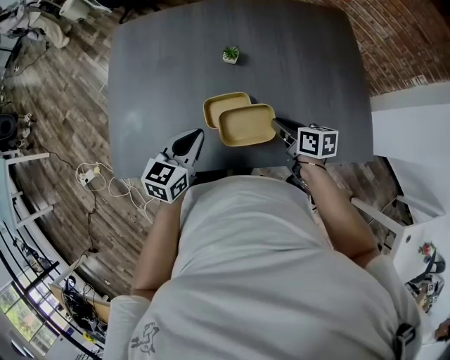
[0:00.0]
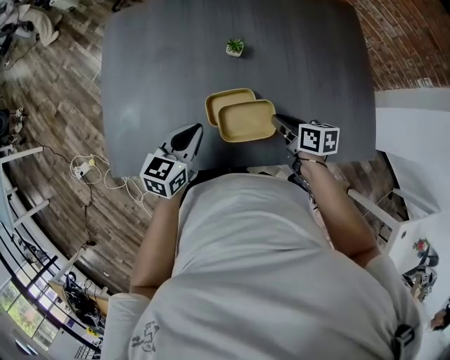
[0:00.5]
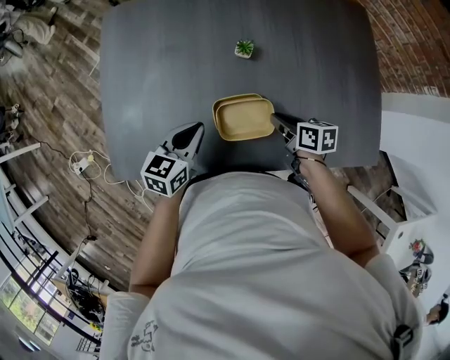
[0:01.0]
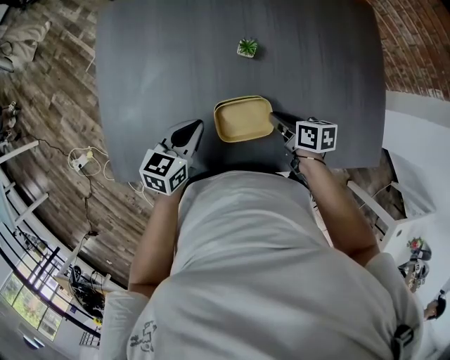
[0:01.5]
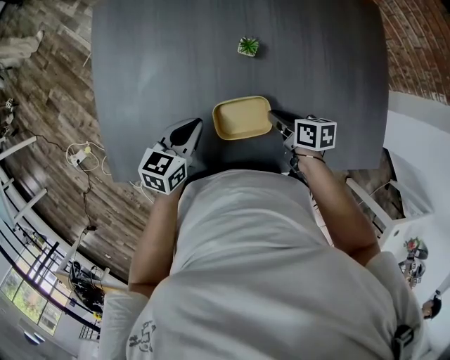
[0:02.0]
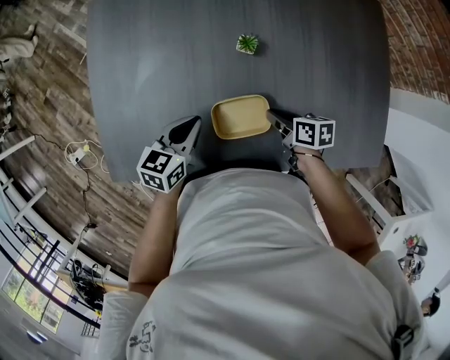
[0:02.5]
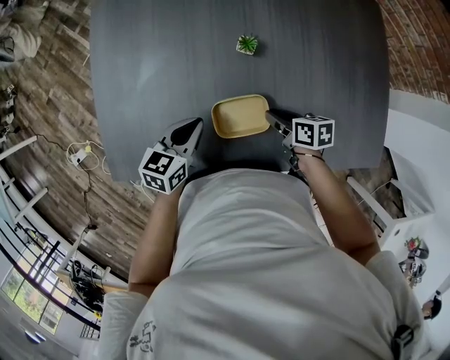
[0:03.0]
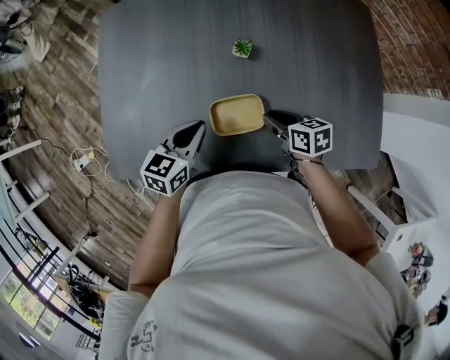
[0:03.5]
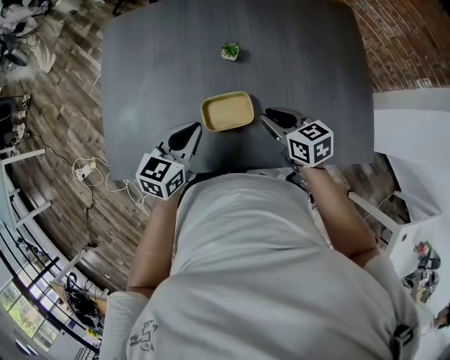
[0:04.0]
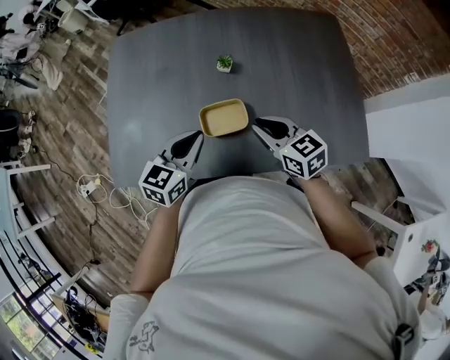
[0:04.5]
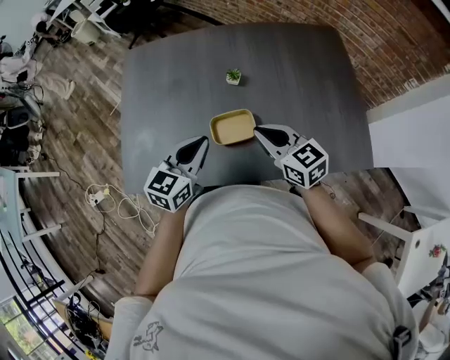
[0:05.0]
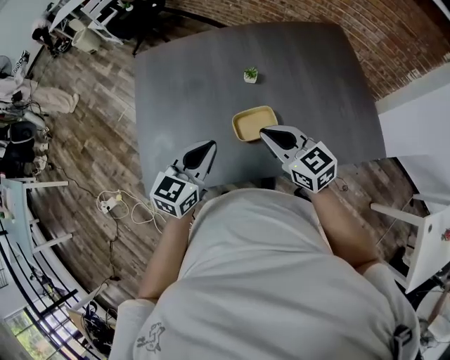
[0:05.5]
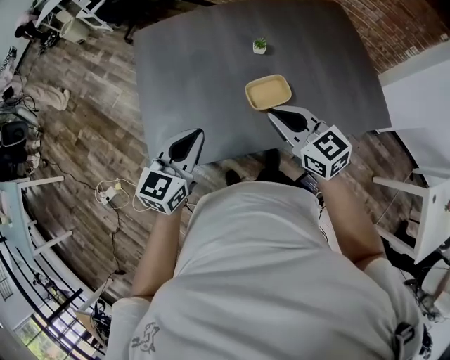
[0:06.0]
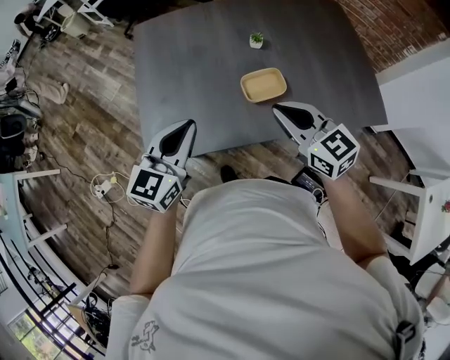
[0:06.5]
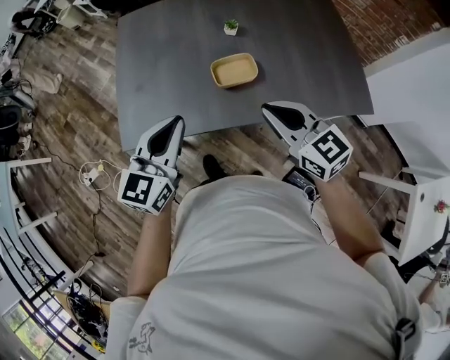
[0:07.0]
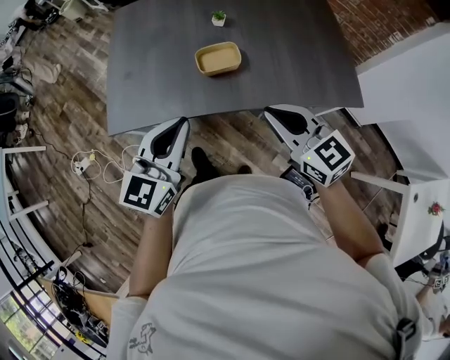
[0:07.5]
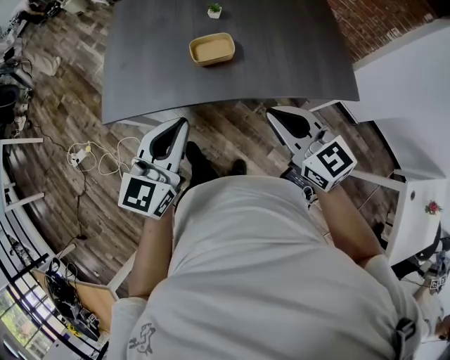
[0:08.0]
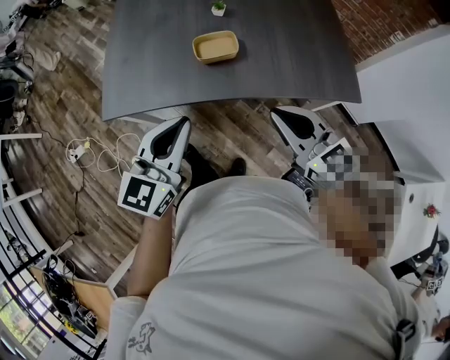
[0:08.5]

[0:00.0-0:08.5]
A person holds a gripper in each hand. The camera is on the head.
0:00.0 to 0:02.0: The right gripper shifts some 10 cm downward and forward. The left gripper travels forward and downward by approximately 10 cm.
0:02.0 to 0:04.0: The left gripper travels upward and backward by roughly 10 cm, while the right gripper travels upward by roughly 10 cm, and changes its angle by approximately 30 degrees.
0:04.0 to 0:06.5: The right gripper travels upward, to the left and backward by roughly 25 cm, and changes its angle by about 30 degrees, while the left gripper moves to the left, upward and backward, approximately 25 cm.
0:06.5 to 0:08.5: The two grippers go about 25 cm backward and to the right.

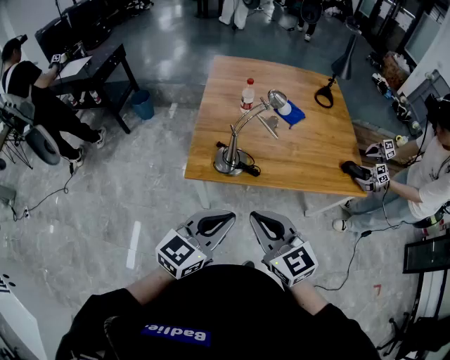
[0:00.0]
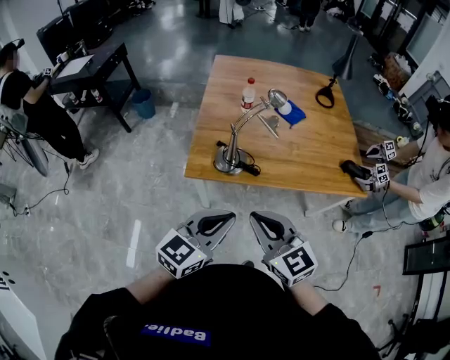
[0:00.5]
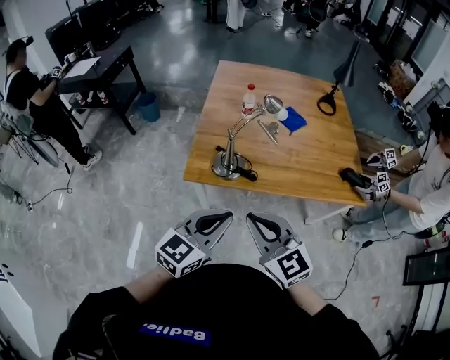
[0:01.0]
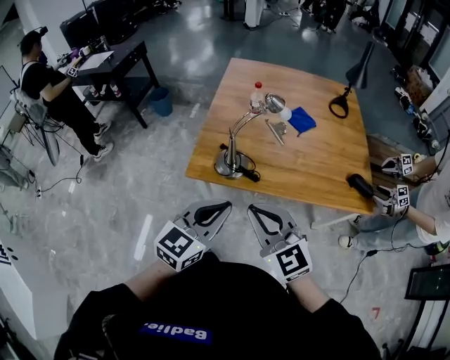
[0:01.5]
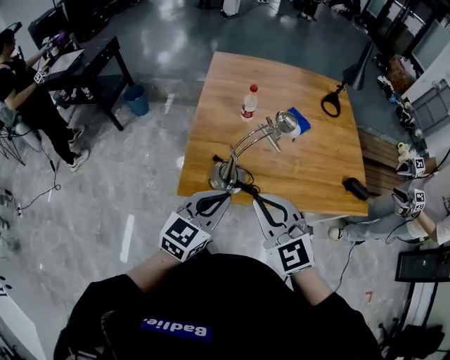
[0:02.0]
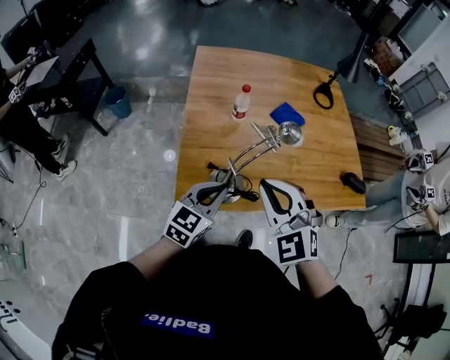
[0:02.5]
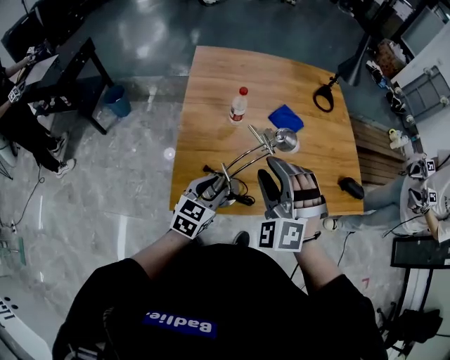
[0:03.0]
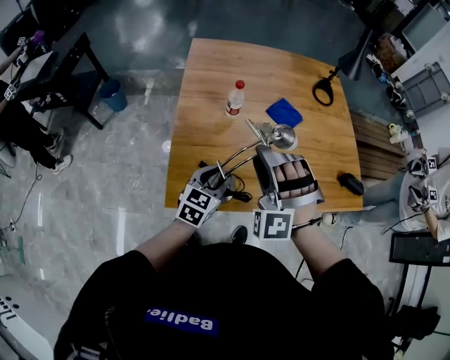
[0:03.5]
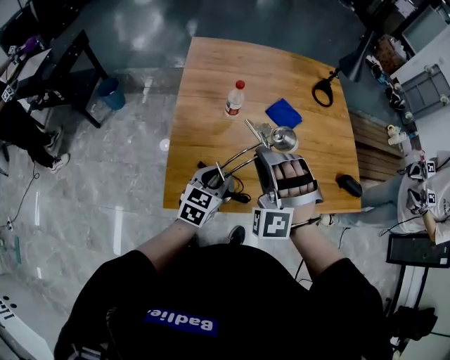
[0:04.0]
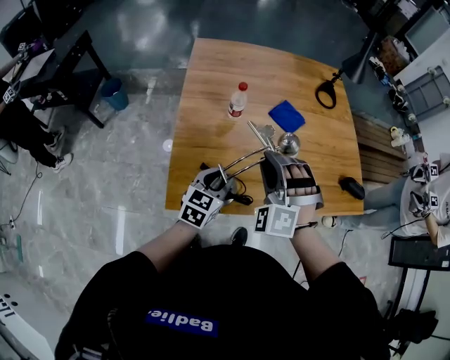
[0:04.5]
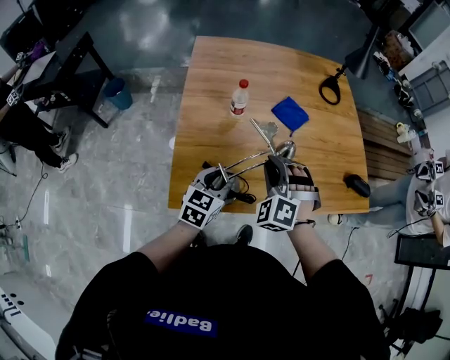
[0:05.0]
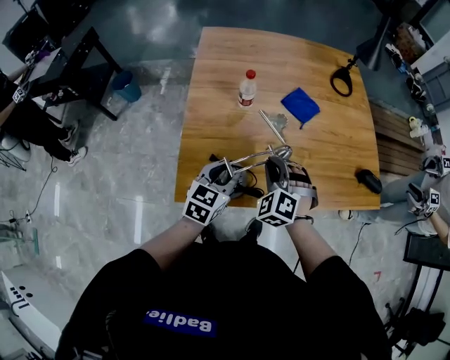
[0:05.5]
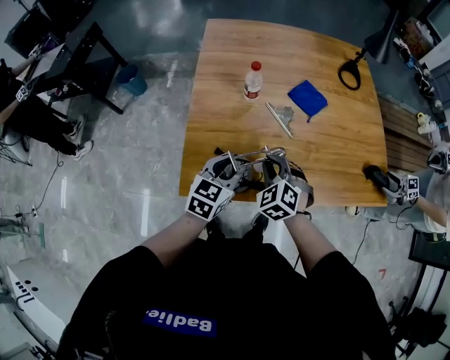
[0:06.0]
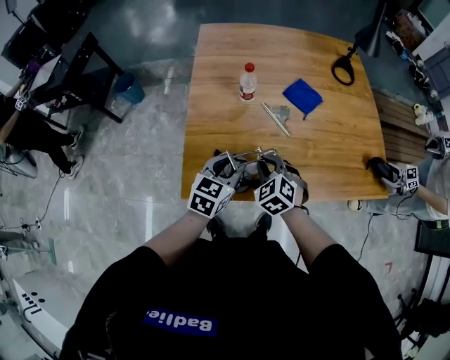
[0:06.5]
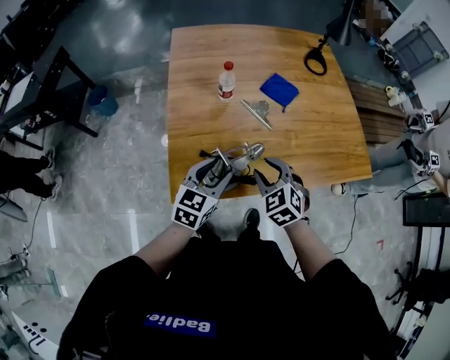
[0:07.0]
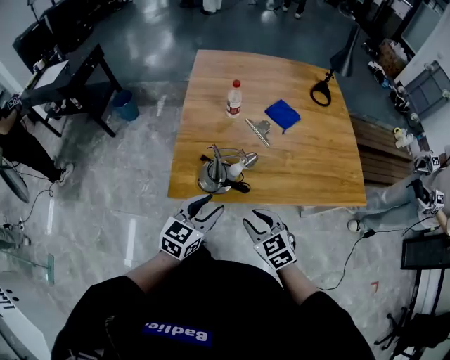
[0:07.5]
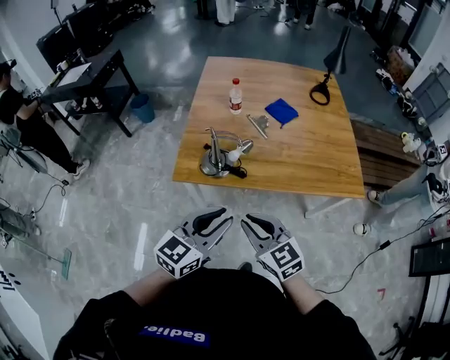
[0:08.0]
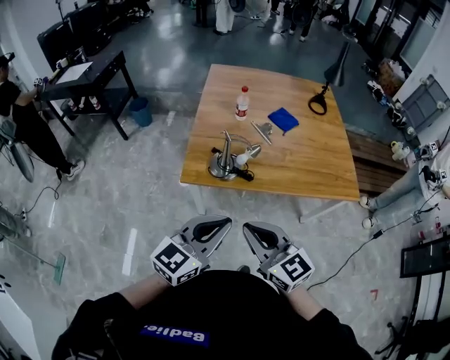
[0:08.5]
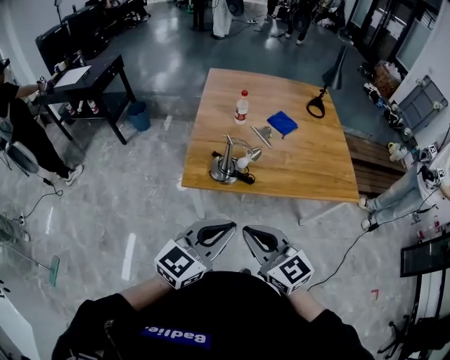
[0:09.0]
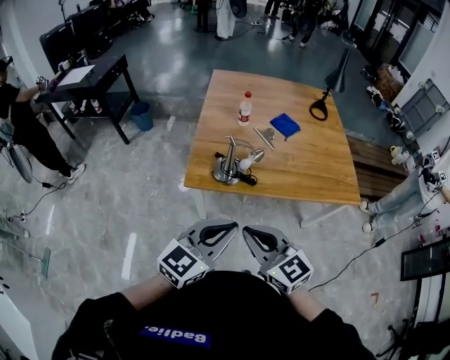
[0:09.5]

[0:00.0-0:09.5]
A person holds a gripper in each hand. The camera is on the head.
0:00.0 to 0:02.0: The grippers both shift forward by roughly 15 cm. The right gripper changes its angle by some 20 degrees.
0:02.0 to 0:04.0: The left gripper shifts about 20 cm forward and downward, and opens its fingers, while the right gripper moves forward, some 20 cm, twists some 60 degrees counterclockwise, seen from behind, and opens up.
0:04.0 to 0:05.5: The right gripper is displaced downward by roughly 15 cm, and turns by roughly 40 degrees.
0:05.5 to 0:07.5: The two grippers go roughly 20 cm backward. The right gripper changes its angle by approximately 40 degrees, and opens.
0:07.5 to 0:09.5: The two grippers go about 25 cm backward and upward. The right gripper rotates roughly 30 degrees, and closes. The left gripper closes up.

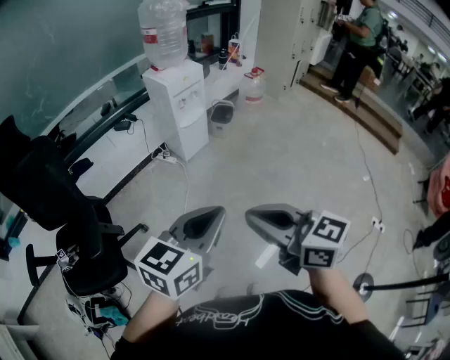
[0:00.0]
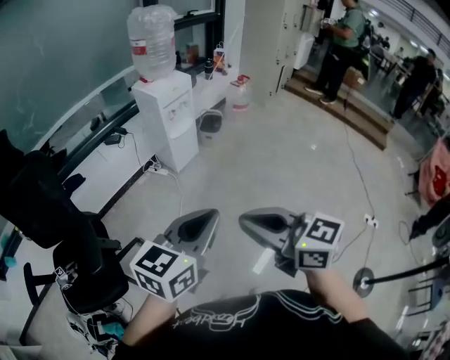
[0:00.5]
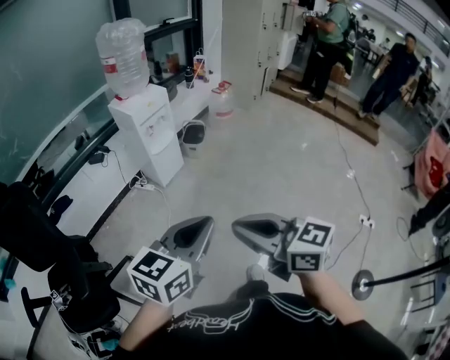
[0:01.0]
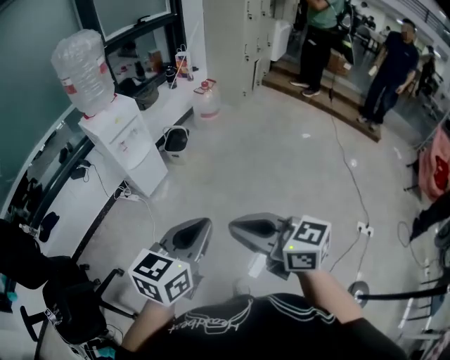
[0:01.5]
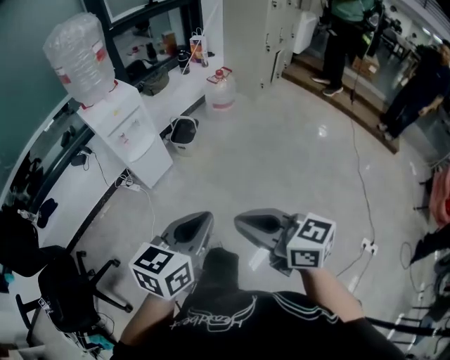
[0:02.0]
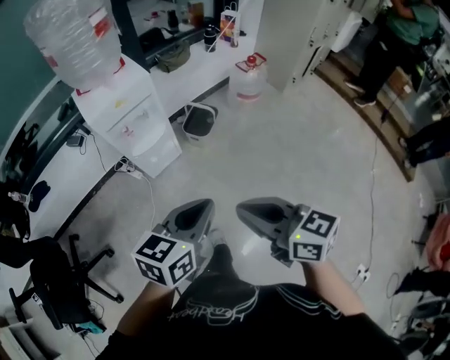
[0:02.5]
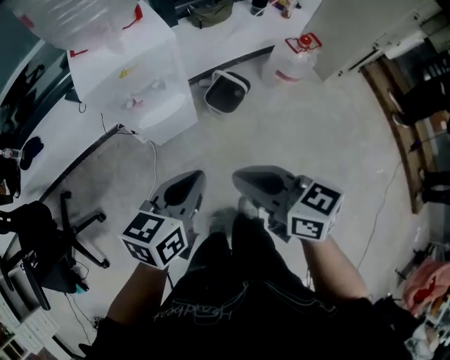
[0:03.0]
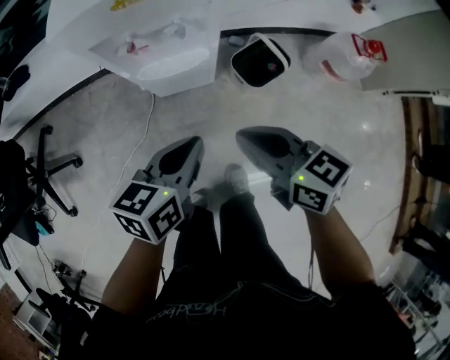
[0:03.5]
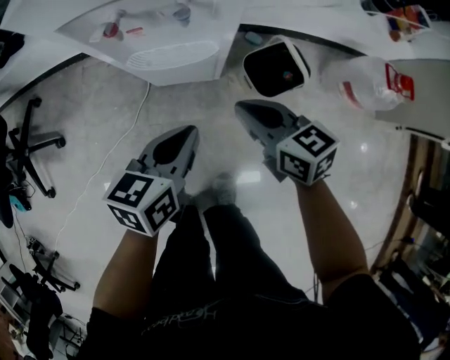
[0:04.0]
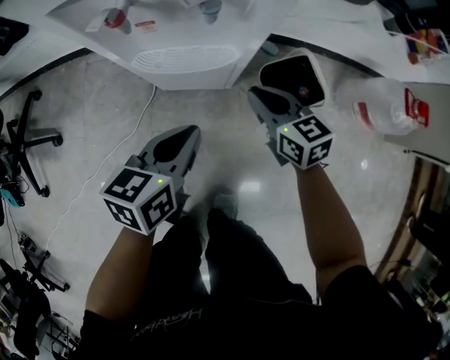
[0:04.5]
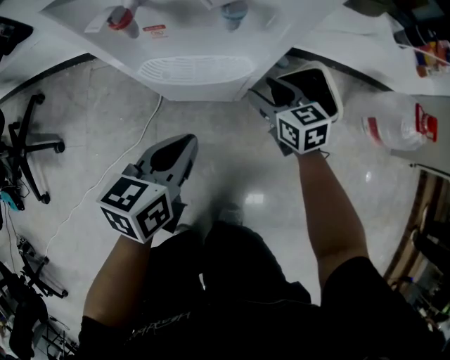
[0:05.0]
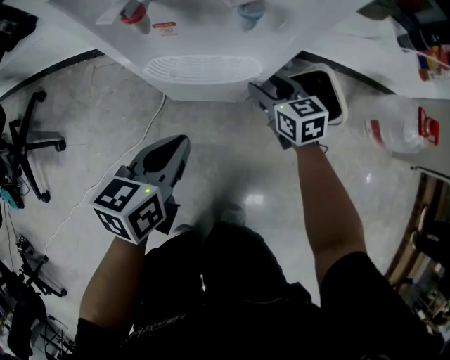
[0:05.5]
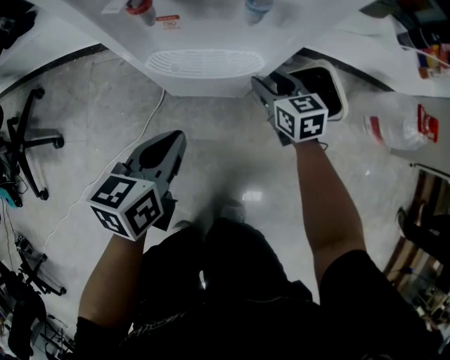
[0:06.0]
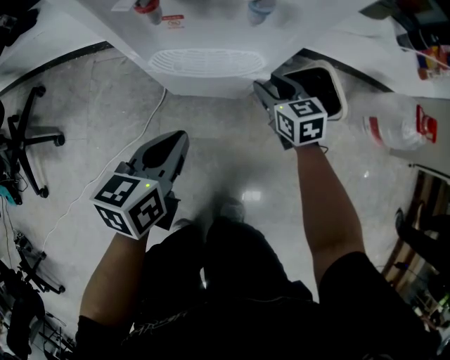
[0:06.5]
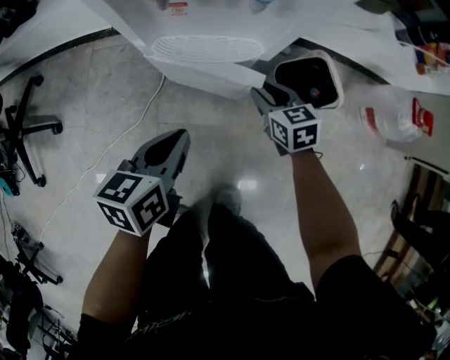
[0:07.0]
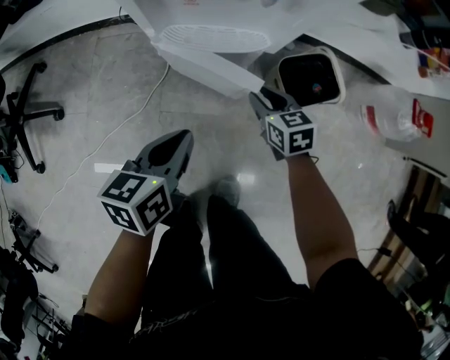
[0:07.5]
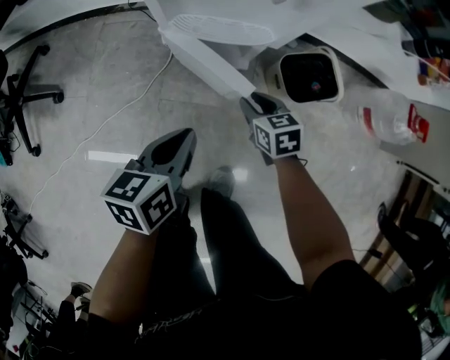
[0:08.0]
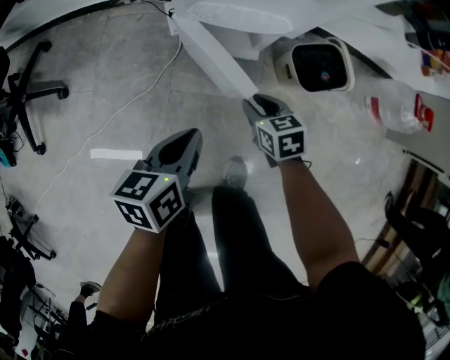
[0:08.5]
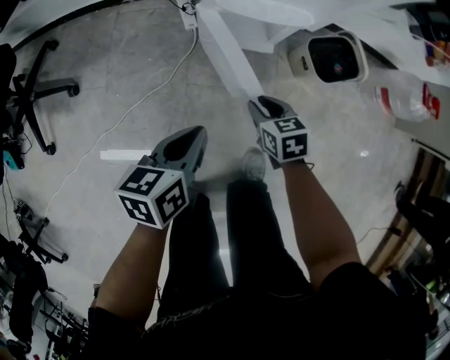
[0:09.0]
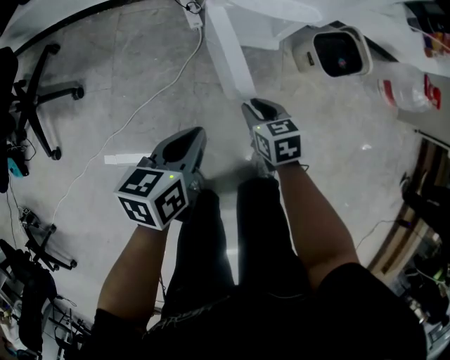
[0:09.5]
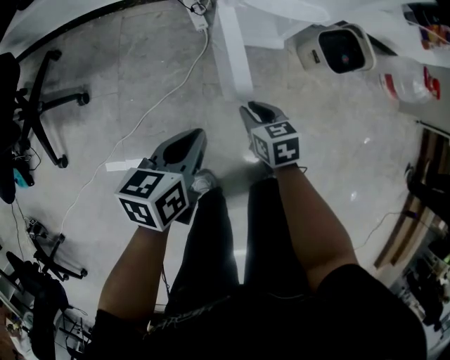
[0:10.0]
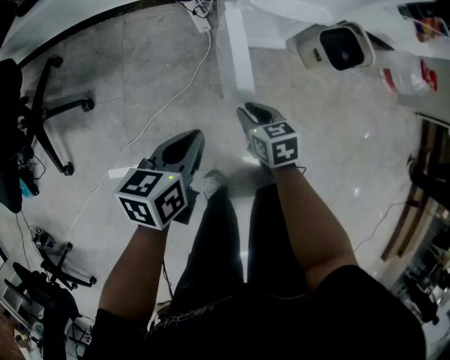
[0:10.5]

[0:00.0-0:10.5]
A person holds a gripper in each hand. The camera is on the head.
0:00.0 to 0:02.0: Both grippers are carried to the right and forward, roughly 40 cm.
0:02.0 to 0:04.0: The two grippers travel together, about 60 cm. The left gripper rotates about 50 degrees, while the right gripper turns by about 40 degrees.
0:04.0 to 0:06.5: The right gripper travels downward and forward by about 25 cm, turns by roughly 20 degrees, and opens, while the left gripper travels downward and to the left by some 15 cm.
0:06.5 to 0:08.5: The right gripper moves backward and to the left, roughly 20 cm; the left gripper travels backward by about 10 cm.
0:08.5 to 0:10.5: The right gripper goes roughly 20 cm to the left and backward. Meanwhile the left gripper goes some 20 cm to the left.
